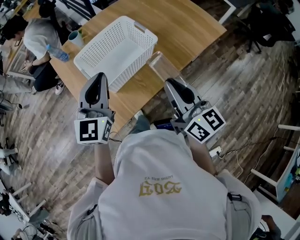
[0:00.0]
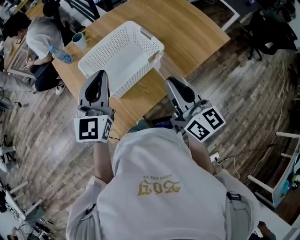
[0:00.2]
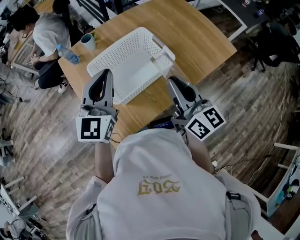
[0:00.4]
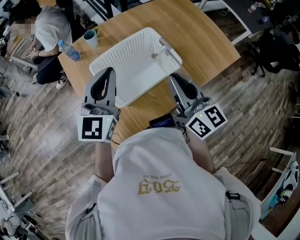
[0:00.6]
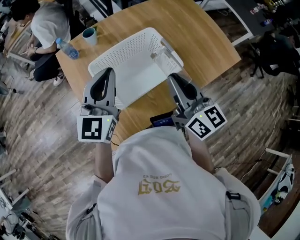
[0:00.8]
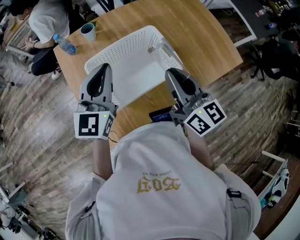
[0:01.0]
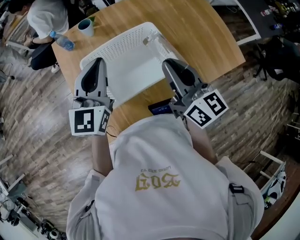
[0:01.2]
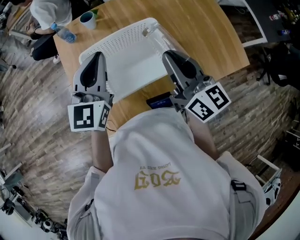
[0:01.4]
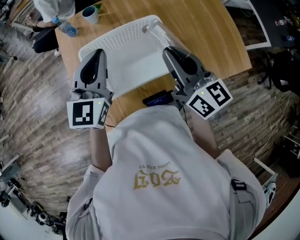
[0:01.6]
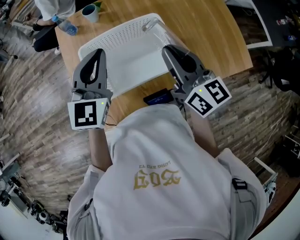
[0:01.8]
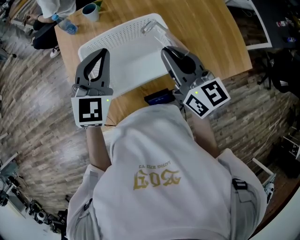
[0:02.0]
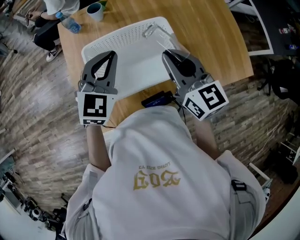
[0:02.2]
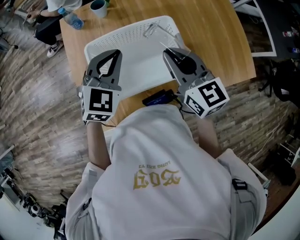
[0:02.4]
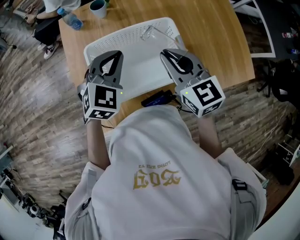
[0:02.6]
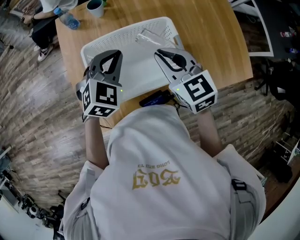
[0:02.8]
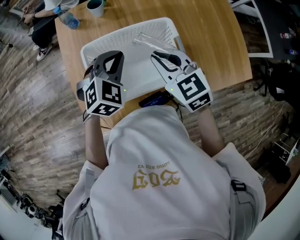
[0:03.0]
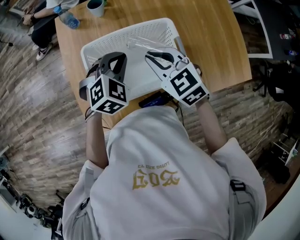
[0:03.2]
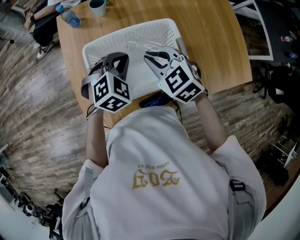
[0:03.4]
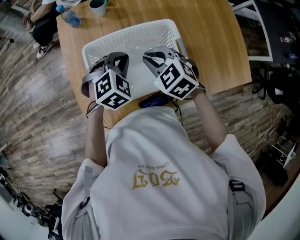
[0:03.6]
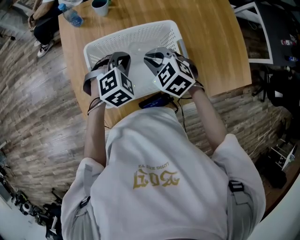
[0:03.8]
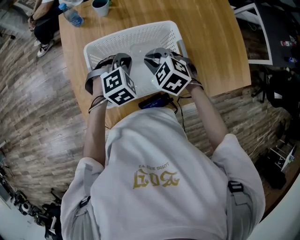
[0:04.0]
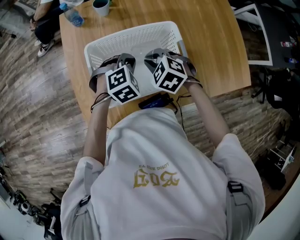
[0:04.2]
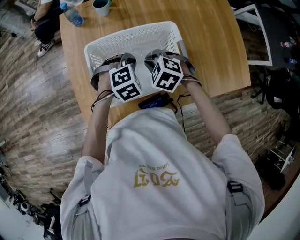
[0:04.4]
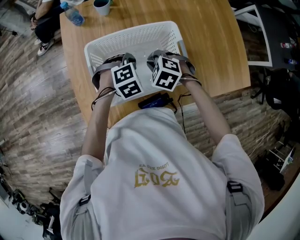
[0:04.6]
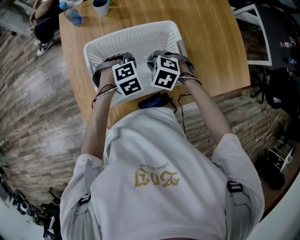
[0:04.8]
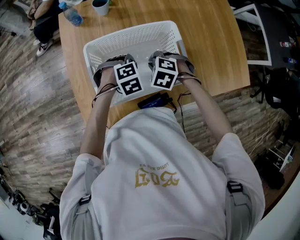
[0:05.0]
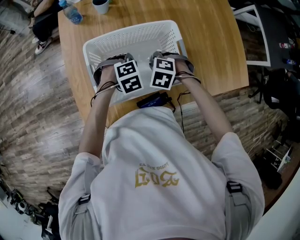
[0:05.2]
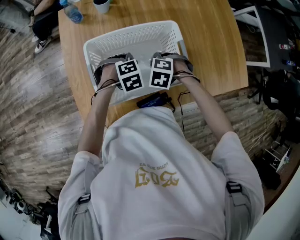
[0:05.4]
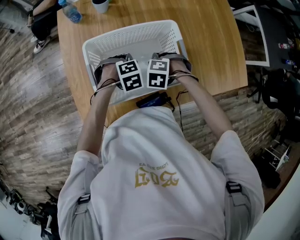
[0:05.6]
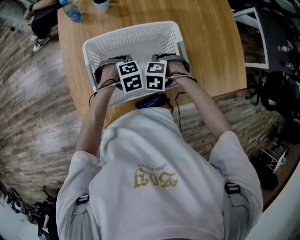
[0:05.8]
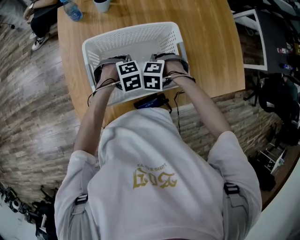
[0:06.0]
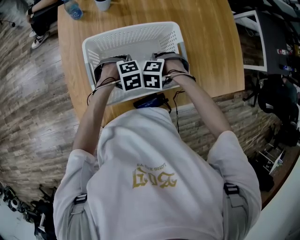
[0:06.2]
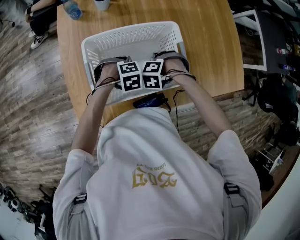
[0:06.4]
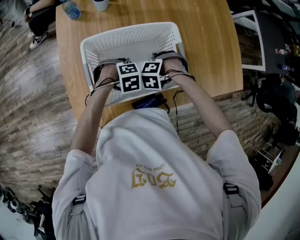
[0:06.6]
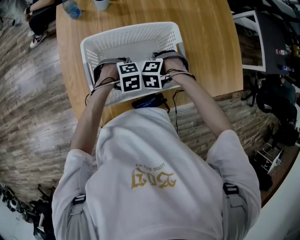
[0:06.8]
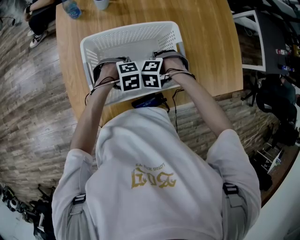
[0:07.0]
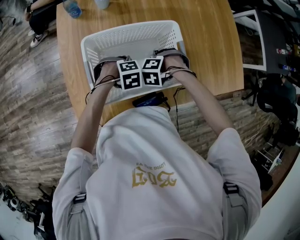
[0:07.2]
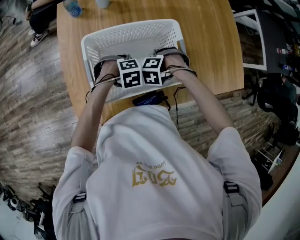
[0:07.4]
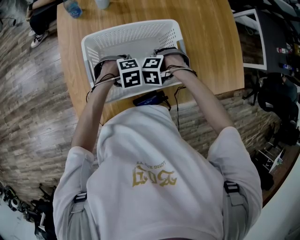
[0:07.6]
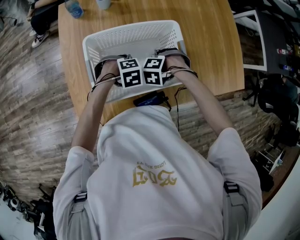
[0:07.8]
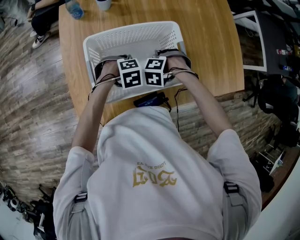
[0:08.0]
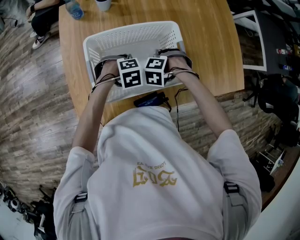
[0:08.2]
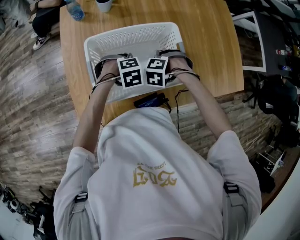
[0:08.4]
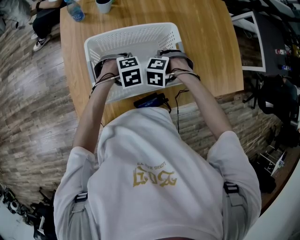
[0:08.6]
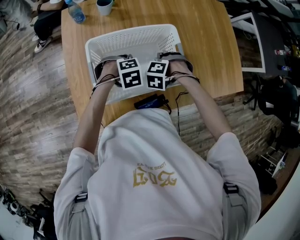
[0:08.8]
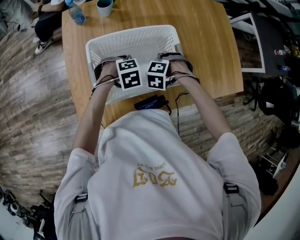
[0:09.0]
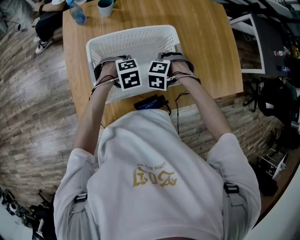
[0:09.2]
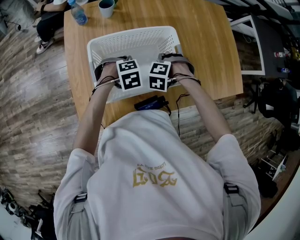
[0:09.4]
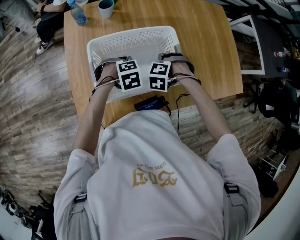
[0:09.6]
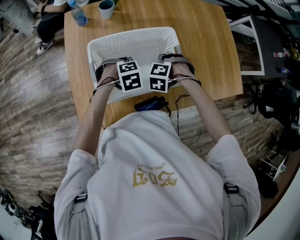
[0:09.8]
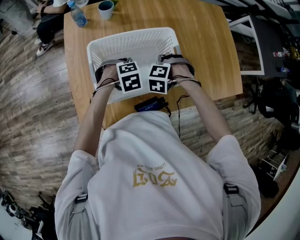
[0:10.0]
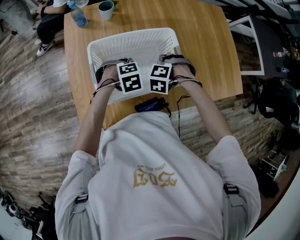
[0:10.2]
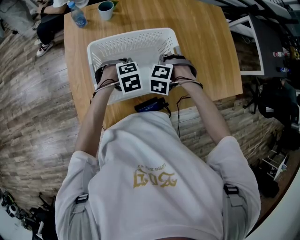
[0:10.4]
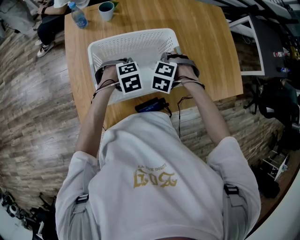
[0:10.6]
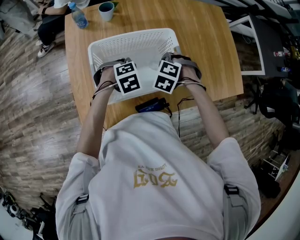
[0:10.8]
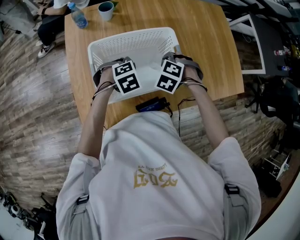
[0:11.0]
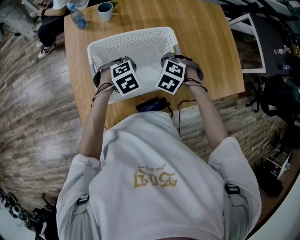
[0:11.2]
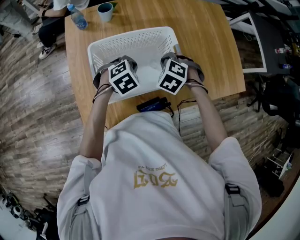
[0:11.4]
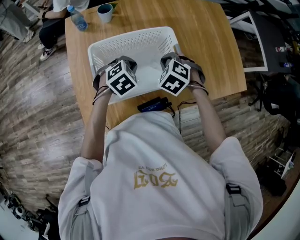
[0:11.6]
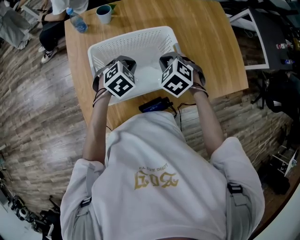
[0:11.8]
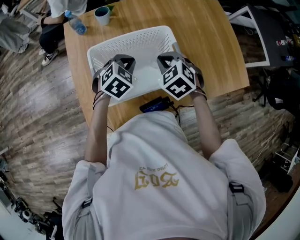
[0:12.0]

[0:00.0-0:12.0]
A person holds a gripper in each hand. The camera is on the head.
0:00.0 to 0:01.6: The left gripper moves forward, some 15 cm, while the right gripper is displaced forward by about 20 cm, and changes its angle by approximately 20 degrees.
0:01.6 to 0:03.0: The left gripper shifts approximately 10 cm downward, and angles its fingers downward, by some 30 degrees. The right gripper goes roughly 10 cm downward and to the left, and tips its fingers downward by approximately 30 degrees.
0:03.0 to 0:04.4: Both grippers travel together downward, roughly 10 cm. The right gripper tilts its fingers roughly 30 degrees downward, while the left gripper turns by approximately 30 degrees.
0:04.4 to 0:06.0: The two grippers go roughly 10 cm downward. The right gripper turns by roughly 30 degrees.
0:06.0 to 0:10.4: The grippers make only small movements.
0:10.4 to 0:12.0: The grippers both shift upward by about 10 cm. The left gripper rotates some 30 degrees, while the right gripper turns by roughly 50 degrees.

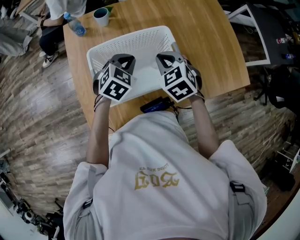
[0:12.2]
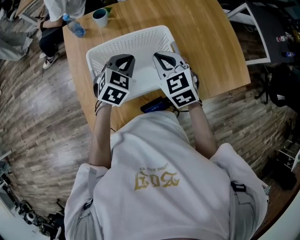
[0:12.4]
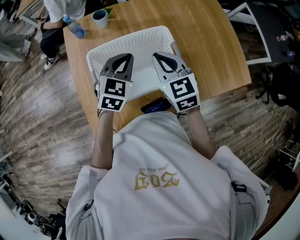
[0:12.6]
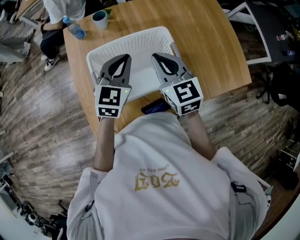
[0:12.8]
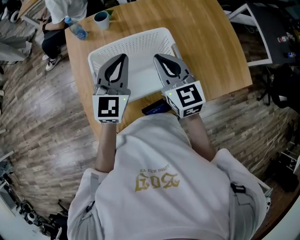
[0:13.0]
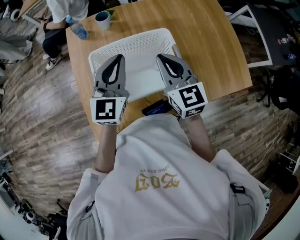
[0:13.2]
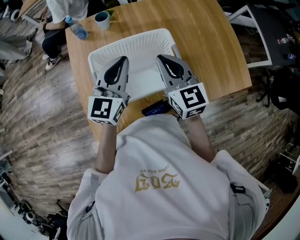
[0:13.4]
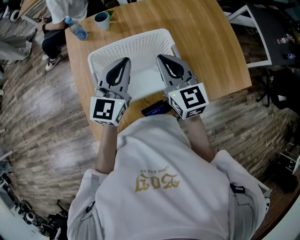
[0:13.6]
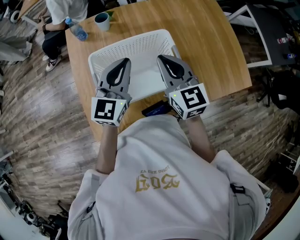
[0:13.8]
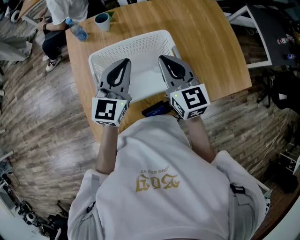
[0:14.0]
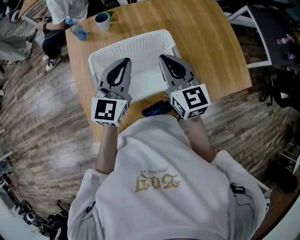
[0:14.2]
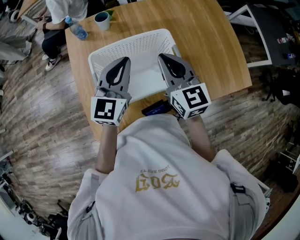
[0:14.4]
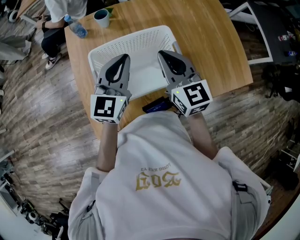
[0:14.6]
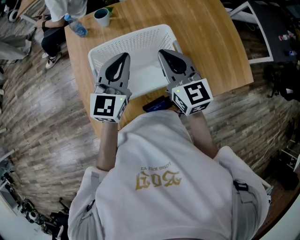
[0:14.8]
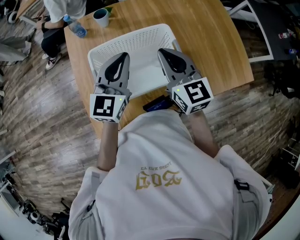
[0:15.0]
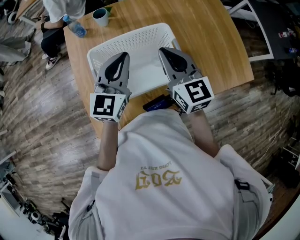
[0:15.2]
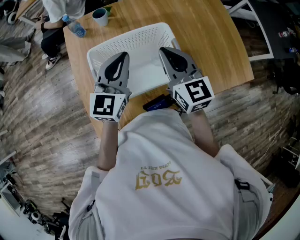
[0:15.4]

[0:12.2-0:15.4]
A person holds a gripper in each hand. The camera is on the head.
0:12.2 to 0:13.8: Both grippers travel together upward, roughly 10 cm. The left gripper tips its fingers upward by roughly 40 degrees. The right gripper angles its fingers upward, by approximately 30 degrees.
0:13.8 to 0:15.4: The two grippers keep their place.

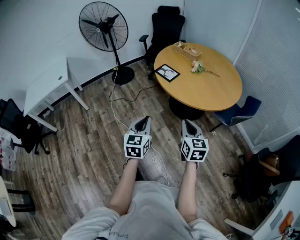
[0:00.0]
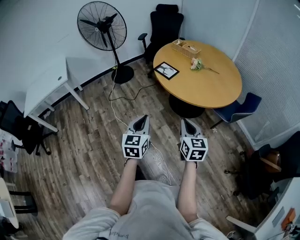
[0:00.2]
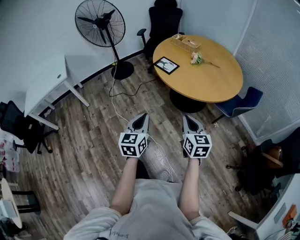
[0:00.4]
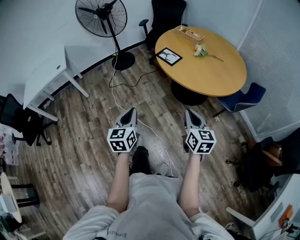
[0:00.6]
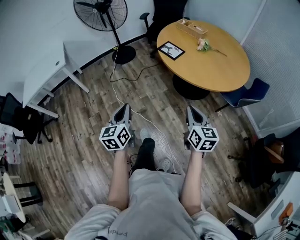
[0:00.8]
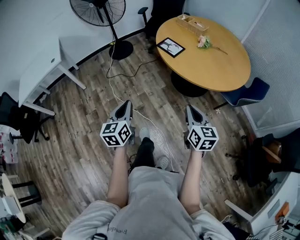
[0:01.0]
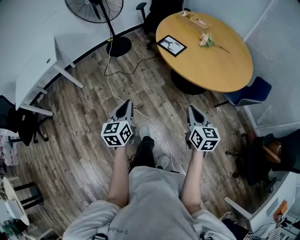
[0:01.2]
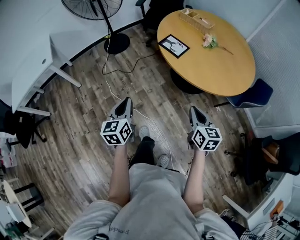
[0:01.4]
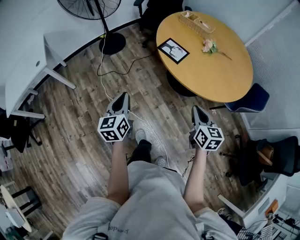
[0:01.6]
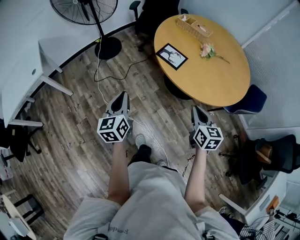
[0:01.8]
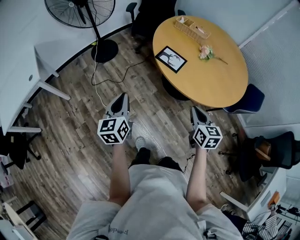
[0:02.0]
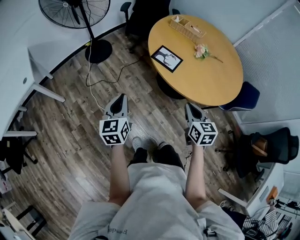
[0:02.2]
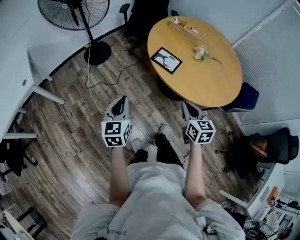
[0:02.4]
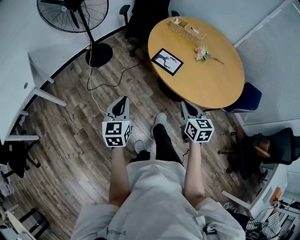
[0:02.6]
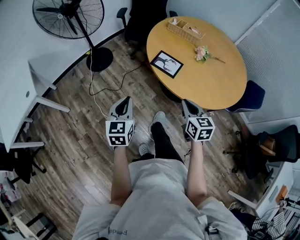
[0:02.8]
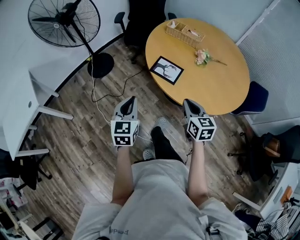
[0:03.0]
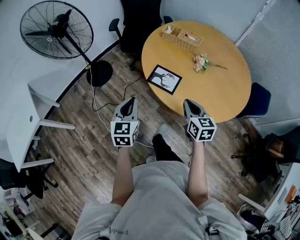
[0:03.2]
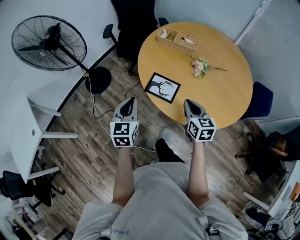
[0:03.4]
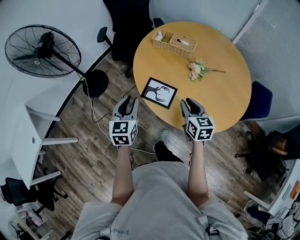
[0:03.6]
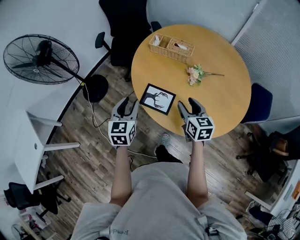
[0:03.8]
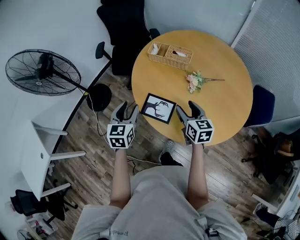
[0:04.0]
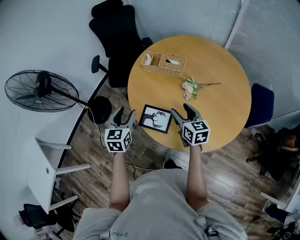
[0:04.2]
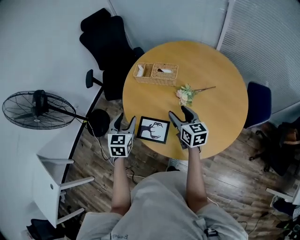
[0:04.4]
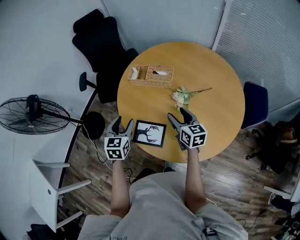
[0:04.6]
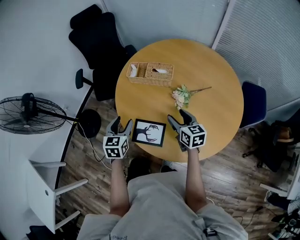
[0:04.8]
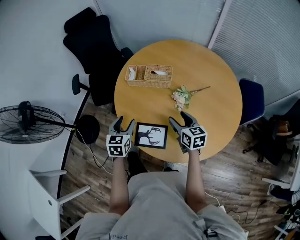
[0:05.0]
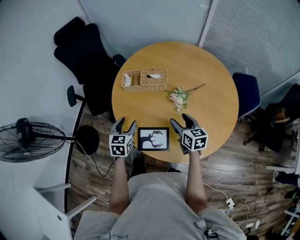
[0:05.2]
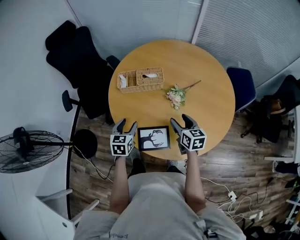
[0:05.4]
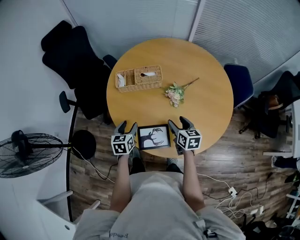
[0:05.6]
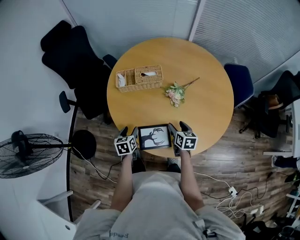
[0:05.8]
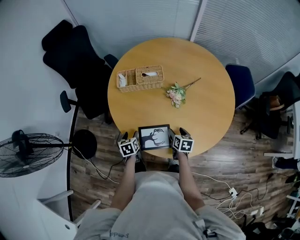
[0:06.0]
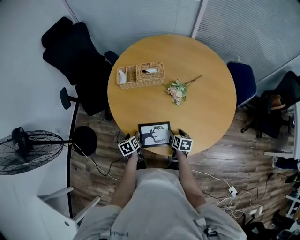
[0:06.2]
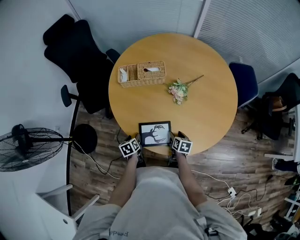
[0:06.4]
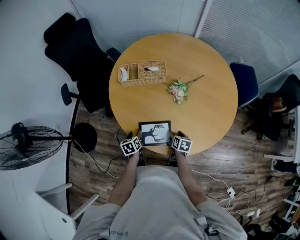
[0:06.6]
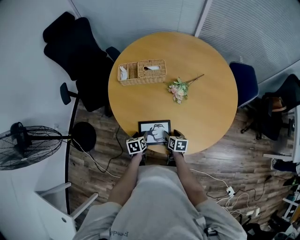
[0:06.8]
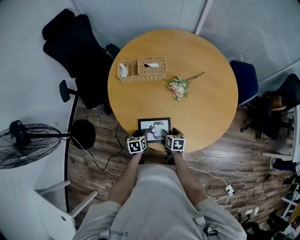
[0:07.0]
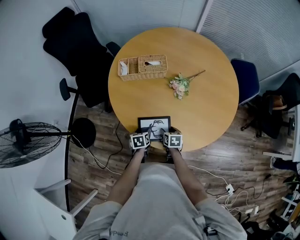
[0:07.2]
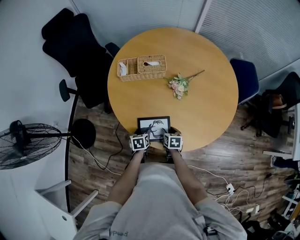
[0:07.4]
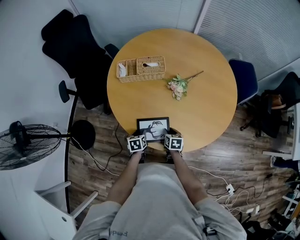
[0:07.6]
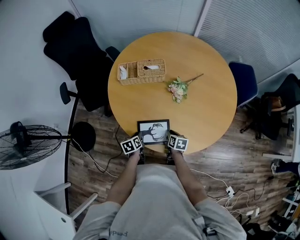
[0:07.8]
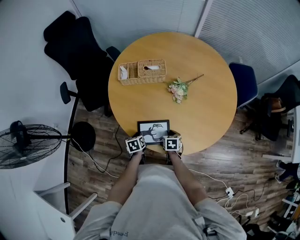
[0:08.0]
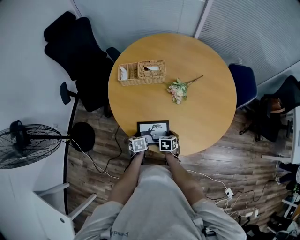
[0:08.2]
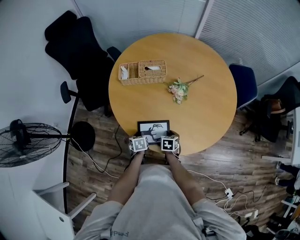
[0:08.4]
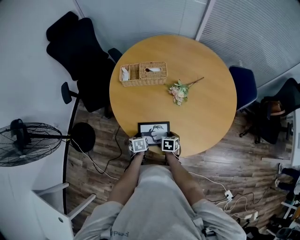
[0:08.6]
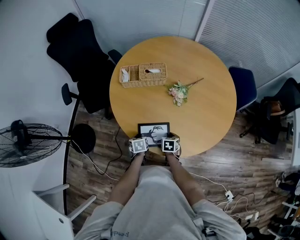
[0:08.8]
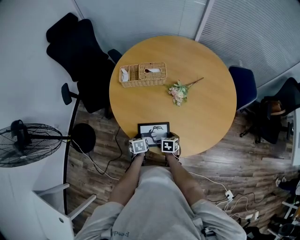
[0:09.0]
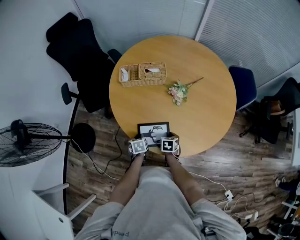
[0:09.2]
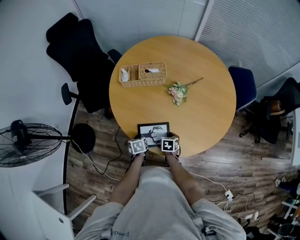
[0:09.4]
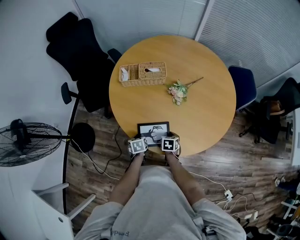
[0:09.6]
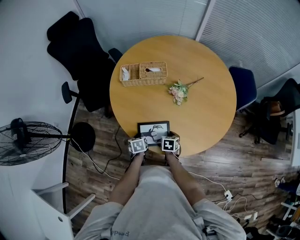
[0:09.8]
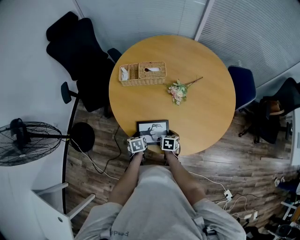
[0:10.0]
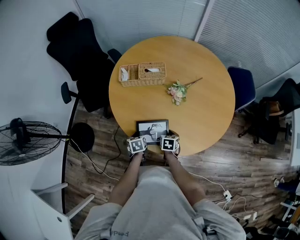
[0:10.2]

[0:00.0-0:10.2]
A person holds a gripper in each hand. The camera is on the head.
0:00.0 to 0:01.4: The left gripper goes roughly 20 cm to the left, forward and downward. The right gripper shifts some 10 cm forward and downward.
0:01.4 to 0:03.0: Both grippers move forward, approximately 25 cm. The left gripper swivels roughly 20 degrees.
0:03.0 to 0:04.4: The grippers both shift forward by about 30 cm. The right gripper opens; the left gripper changes its angle by about 20 degrees, and opens up.
0:04.4 to 0:05.8: The two grippers go approximately 15 cm downward. The right gripper changes its angle by some 40 degrees. Meanwhile the left gripper turns by some 30 degrees.
0:05.8 to 0:07.2: The left gripper heads downward, backward and to the right, covering some 15 cm, while the right gripper goes approximately 15 cm downward, backward and to the left.
0:07.2 to 0:08.8: The right gripper closes up. Meanwhile the left gripper closes.
0:08.8 to 0:10.2: The grippers stay close to where they were, moving slightly.
